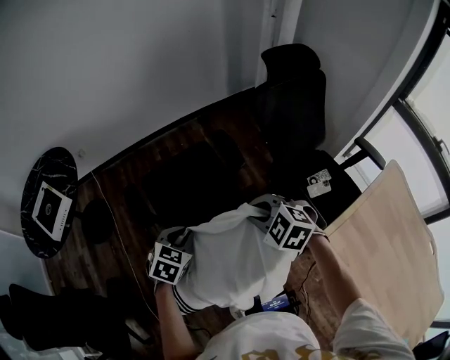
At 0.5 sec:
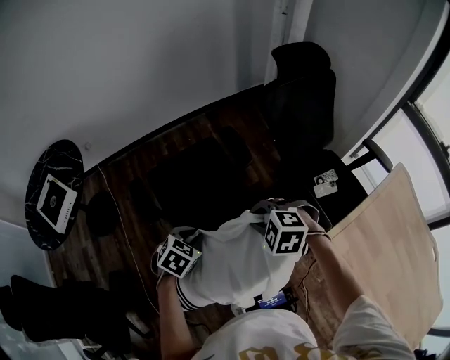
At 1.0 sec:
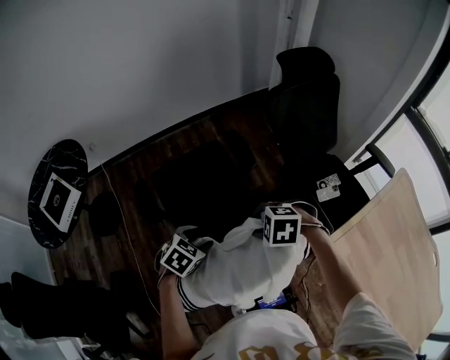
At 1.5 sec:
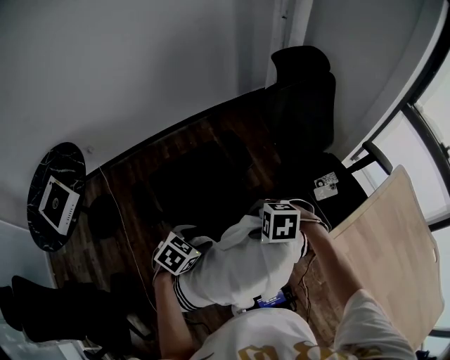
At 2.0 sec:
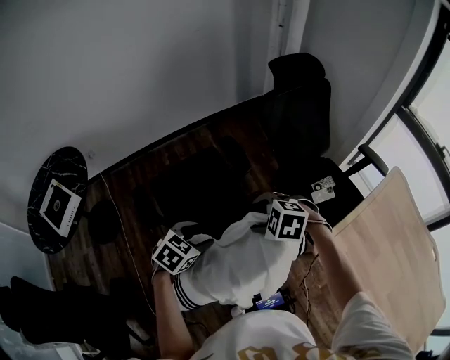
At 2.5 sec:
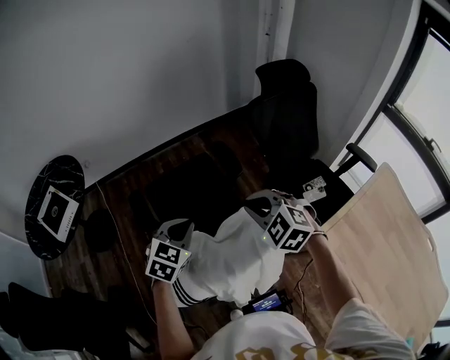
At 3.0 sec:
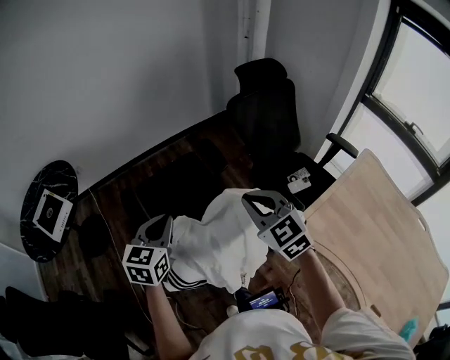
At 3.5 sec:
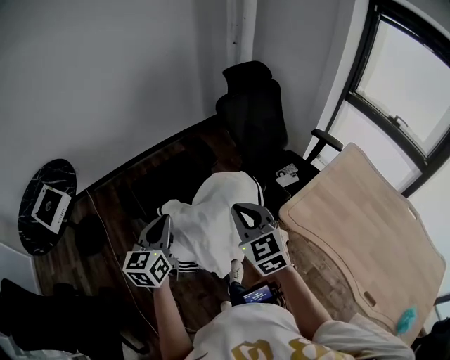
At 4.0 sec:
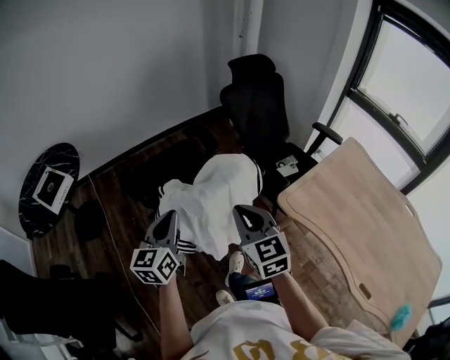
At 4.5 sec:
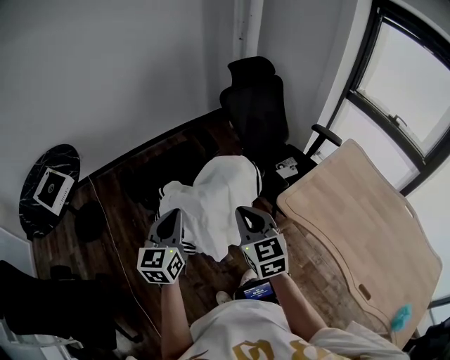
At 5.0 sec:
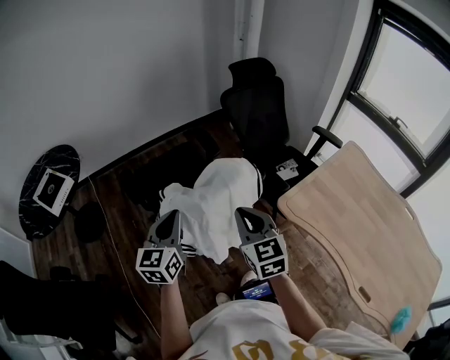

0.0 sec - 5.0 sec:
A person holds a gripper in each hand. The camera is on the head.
0.0 sec - 2.5 sec: The grippers both shift upward by some 10 cm. The left gripper opens, then closes once more. The right gripper opens, then closes once more.
2.5 sec - 5.0 sec: Both grippers move backward, about 20 cm. The right gripper turns by approximately 50 degrees, while the left gripper changes its angle by about 40 degrees.

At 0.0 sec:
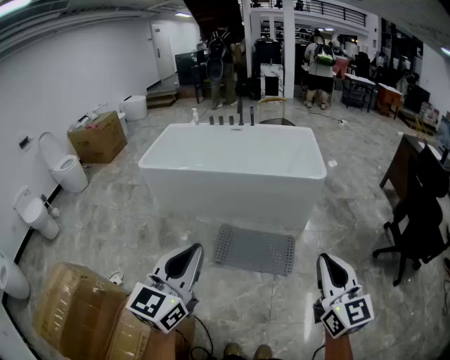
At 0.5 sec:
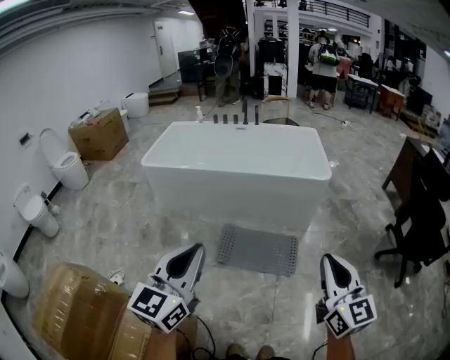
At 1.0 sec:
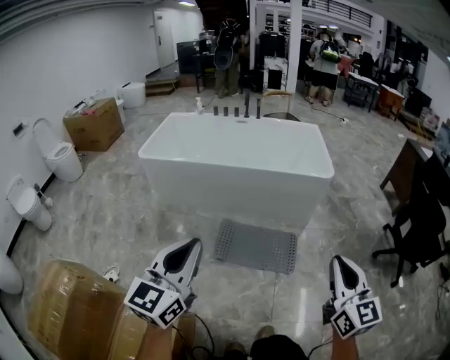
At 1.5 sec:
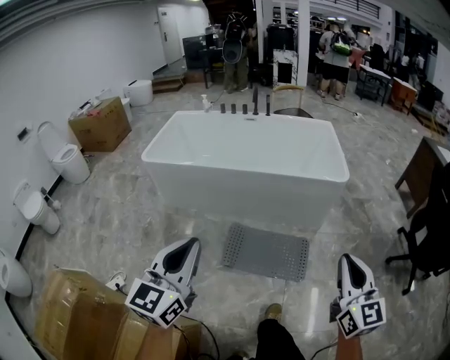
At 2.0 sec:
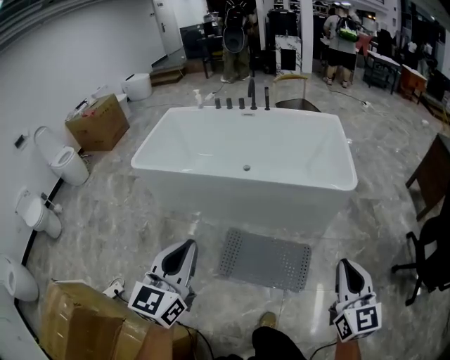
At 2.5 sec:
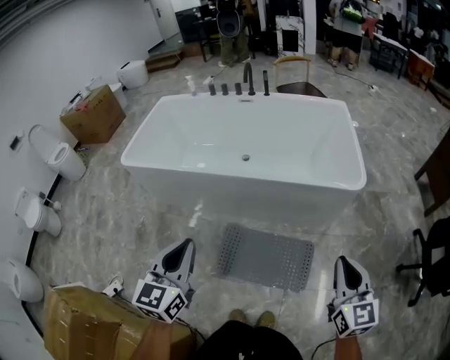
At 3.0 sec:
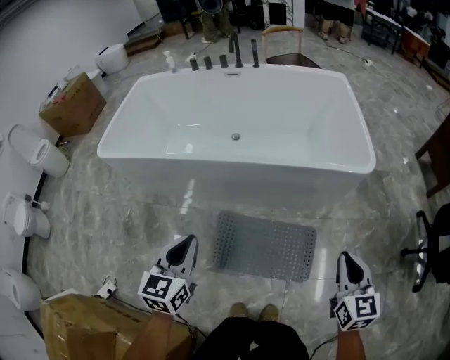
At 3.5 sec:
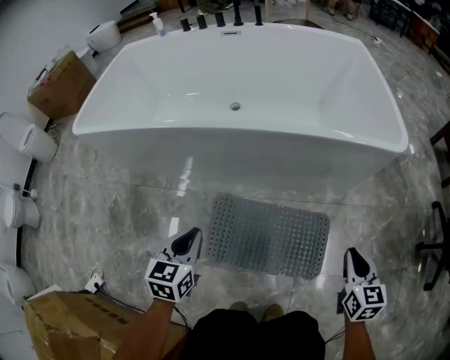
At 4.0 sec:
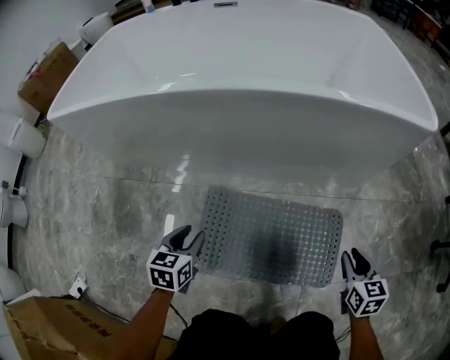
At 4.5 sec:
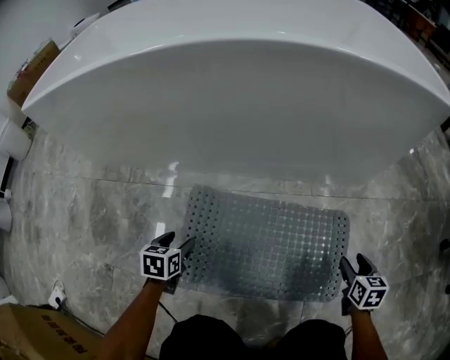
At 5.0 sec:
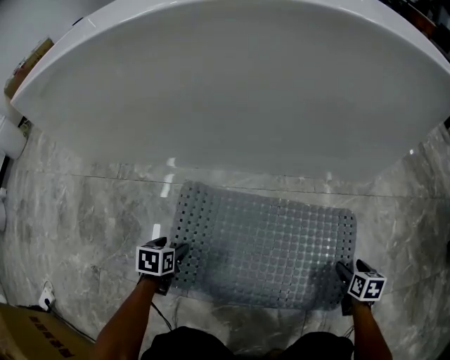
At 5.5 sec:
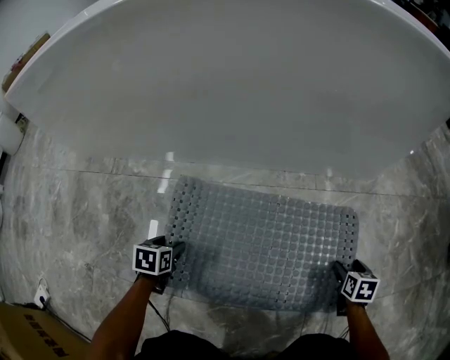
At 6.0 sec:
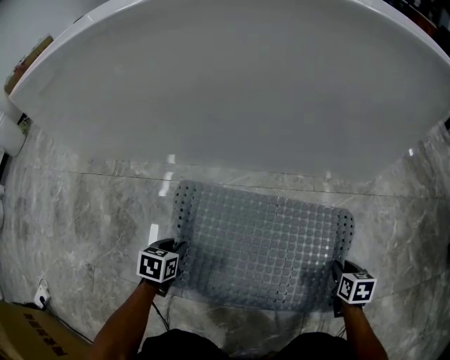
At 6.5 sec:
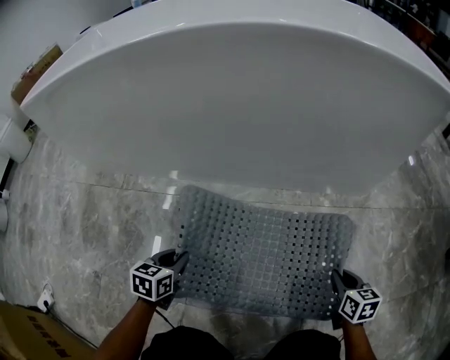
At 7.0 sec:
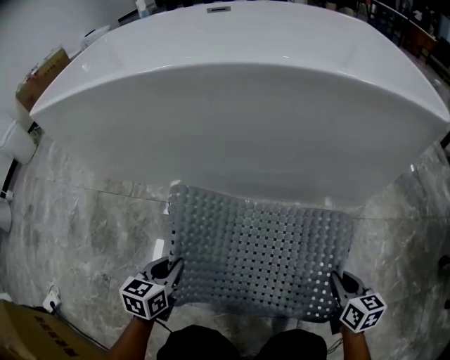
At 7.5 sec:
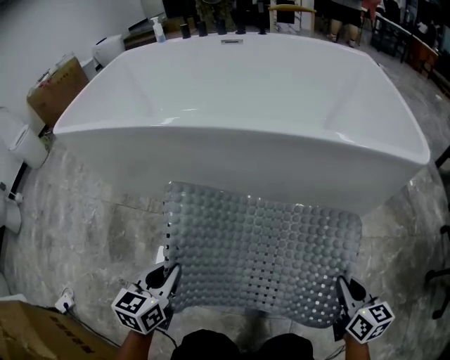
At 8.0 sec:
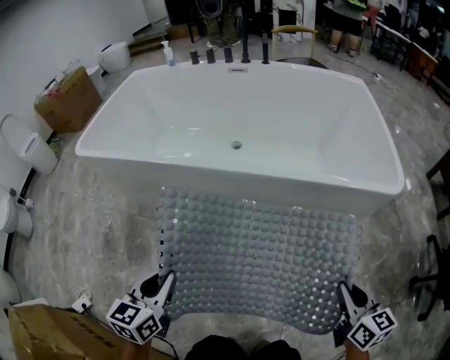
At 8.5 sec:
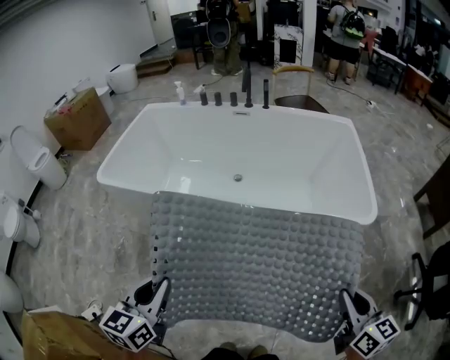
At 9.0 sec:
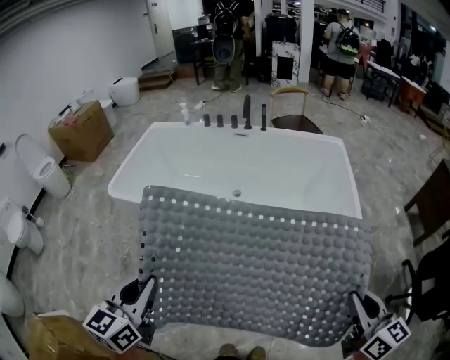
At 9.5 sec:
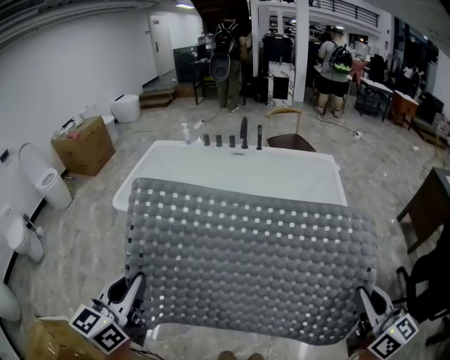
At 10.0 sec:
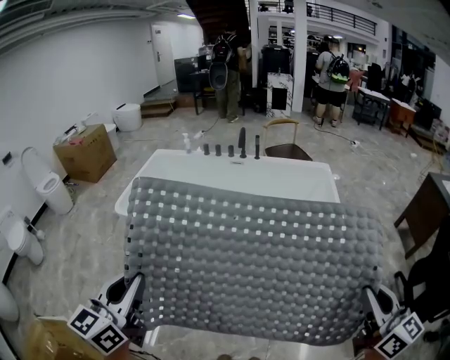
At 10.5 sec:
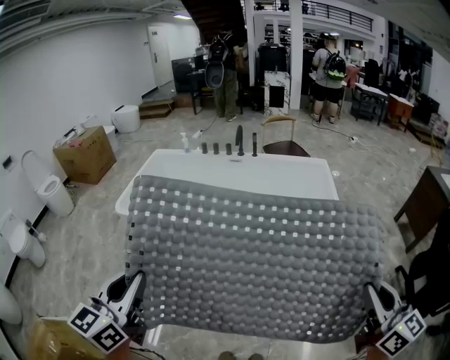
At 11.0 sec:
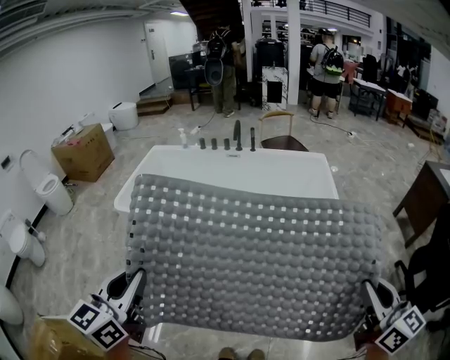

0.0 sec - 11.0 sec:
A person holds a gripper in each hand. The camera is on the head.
0.0 sec - 2.0 sec: Both grippers move forward, approximately 30 cm.
2.0 sec - 3.5 sec: The grippers both shift downward and forward by some 50 cm. The right gripper swivels approximately 30 degrees; the left gripper turns by about 30 degrees.
3.5 sec - 5.5 sec: The grippers both shift downward by approximately 50 cm. The right gripper rotates roughly 30 degrees, and opens; the left gripper angles its fingers downward, by some 30 degrees, and opens.
5.5 sec - 7.5 sec: The two grippers go about 40 cm upward. The left gripper tips its fingers upward by some 40 degrees, and closes. The right gripper tilts its fingers some 30 degrees upward, and closes up.
7.5 sec - 9.0 sec: The two grippers go some 60 cm upward.
9.0 sec - 11.0 sec: Both grippers move upward and backward, about 15 cm.

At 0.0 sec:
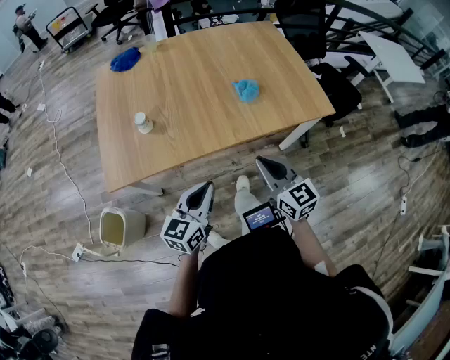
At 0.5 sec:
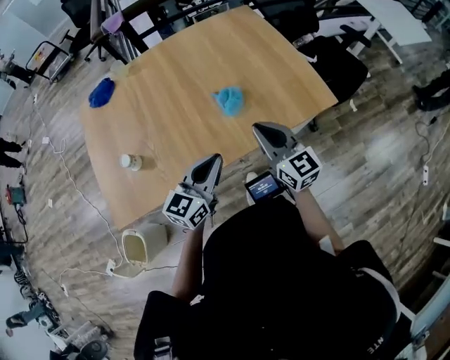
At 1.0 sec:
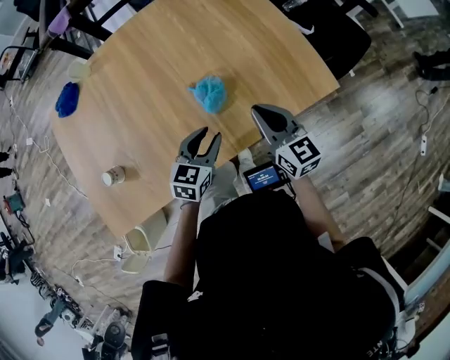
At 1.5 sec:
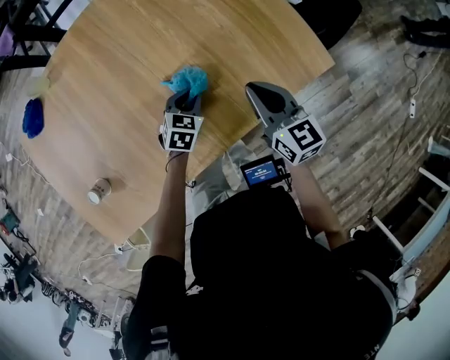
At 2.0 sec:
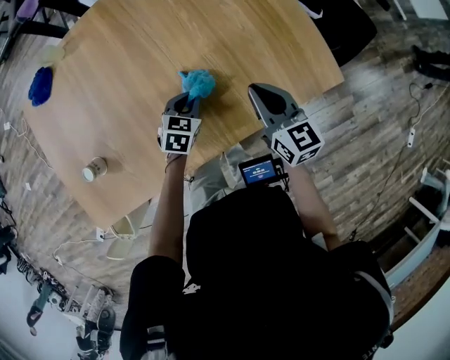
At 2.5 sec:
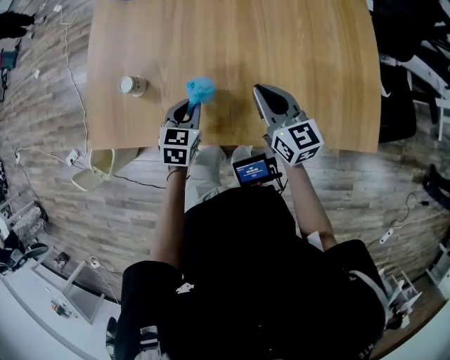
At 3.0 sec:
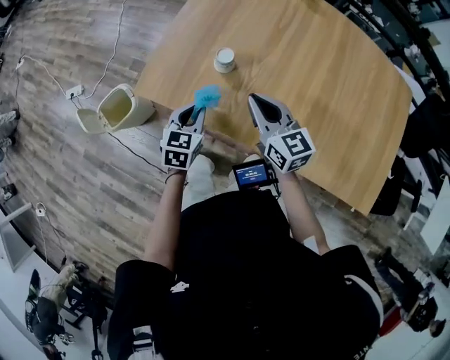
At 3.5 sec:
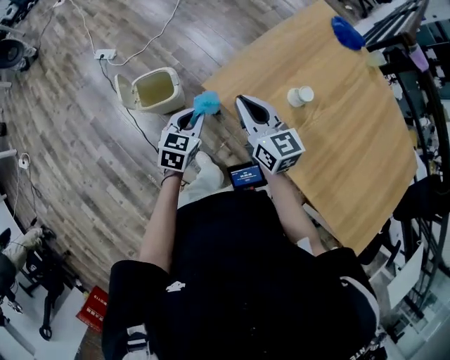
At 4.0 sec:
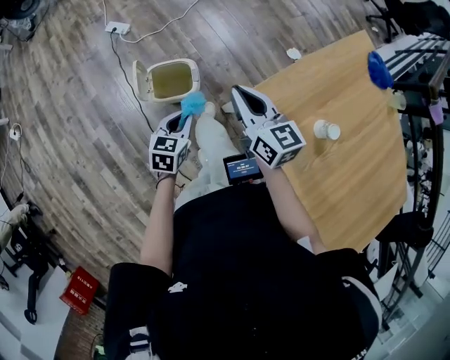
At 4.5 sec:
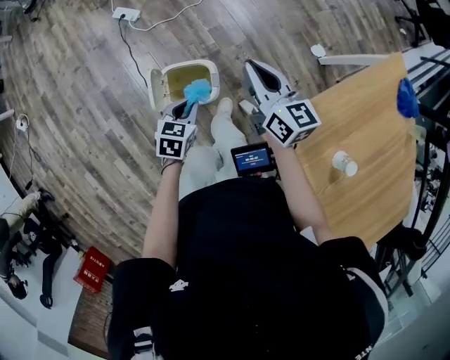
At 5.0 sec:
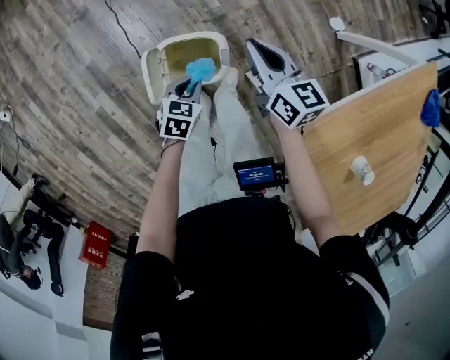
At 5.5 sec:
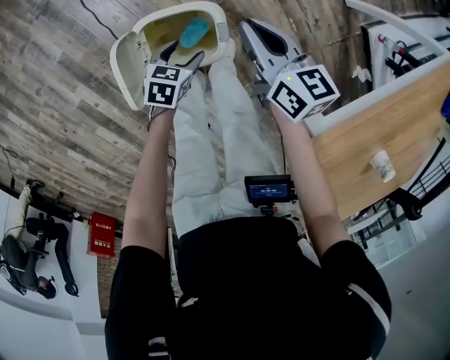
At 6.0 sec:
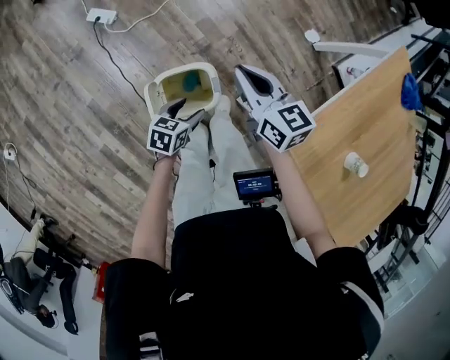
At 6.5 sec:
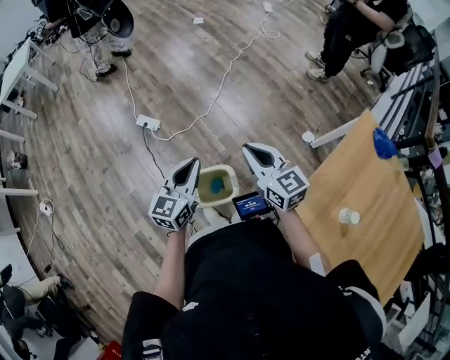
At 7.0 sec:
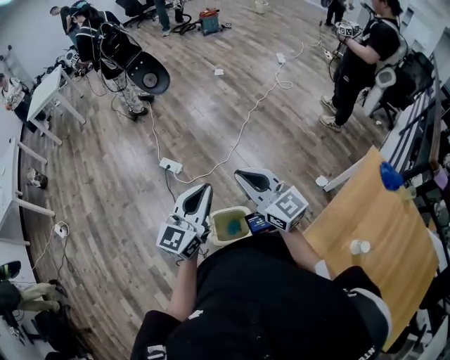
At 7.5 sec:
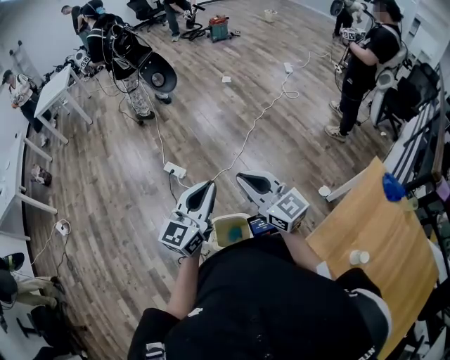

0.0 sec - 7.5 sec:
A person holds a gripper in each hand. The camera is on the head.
0.0 sec - 2.0 sec: The right gripper shifts about 35 cm forward; the left gripper goes about 50 cm forward and downward, and points its fingers some 40 degrees further downward.
2.0 sec - 4.0 sec: The pair of grippers is taken about 90 cm. The right gripper changes its angle by some 80 degrees. The left gripper swivels some 90 degrees.
4.0 sec - 5.5 sec: Both grippers move downward and forward, some 35 cm. The right gripper swivels about 20 degrees. The left gripper swivels about 30 degrees, and opens.
5.5 sec - 7.5 sec: The two grippers go some 60 cm upward. The left gripper tilts its fingers roughly 60 degrees upward, and closes its fingers, while the right gripper points its fingers some 30 degrees further upward.

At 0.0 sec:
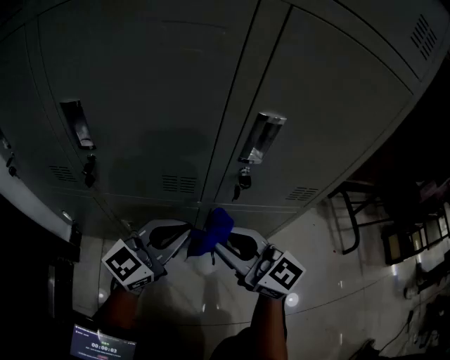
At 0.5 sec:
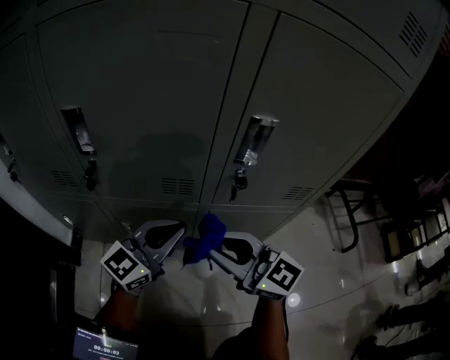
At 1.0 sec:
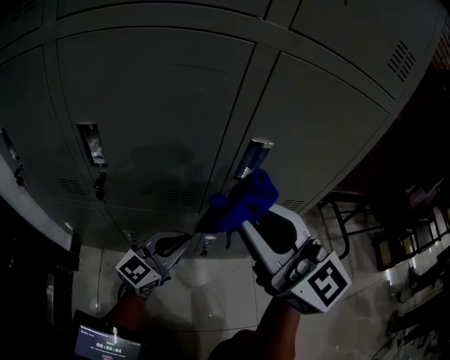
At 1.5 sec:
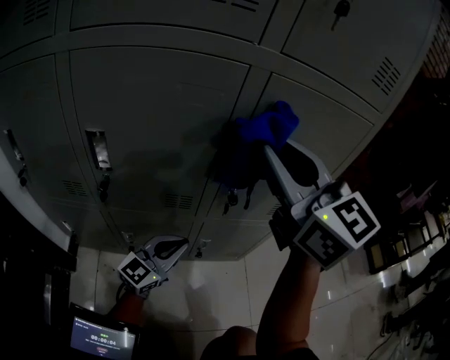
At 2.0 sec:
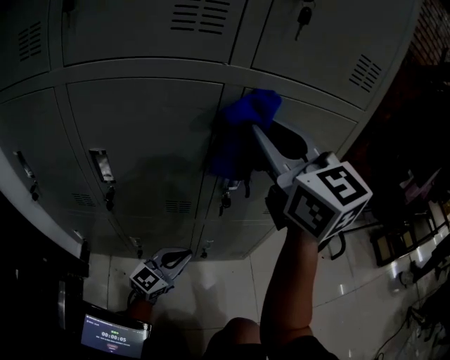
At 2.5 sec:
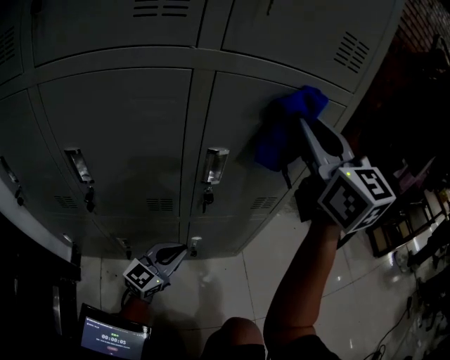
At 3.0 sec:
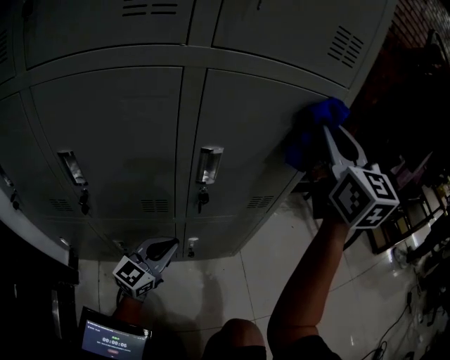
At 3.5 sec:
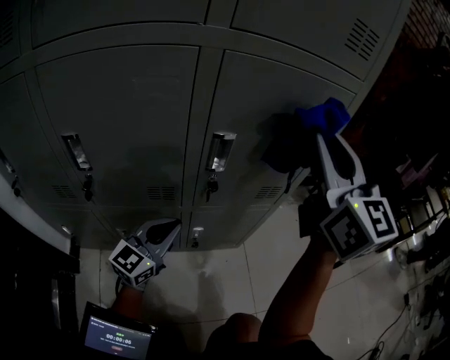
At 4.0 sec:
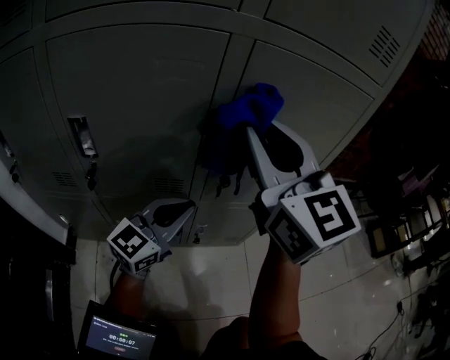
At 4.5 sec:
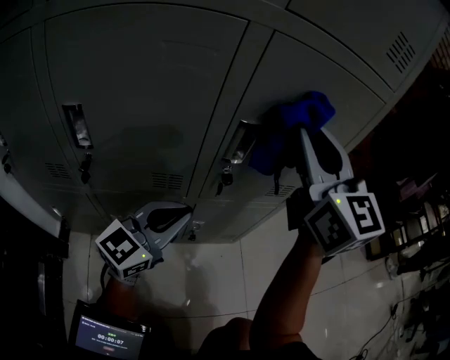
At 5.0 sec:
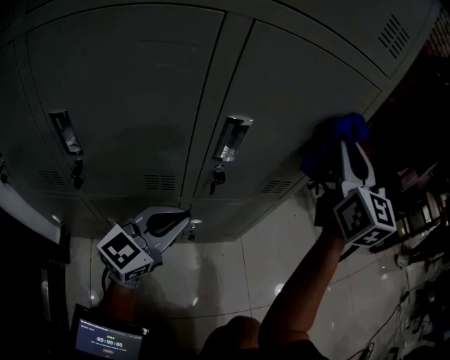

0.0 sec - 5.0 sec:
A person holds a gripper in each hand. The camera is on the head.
0.0 sec - 2.5 sec: The left gripper changes place by some 5 cm, while the right gripper travels upward and to the right by about 35 cm, and changes its angle by some 40 degrees.
2.5 sec - 5.0 sec: The right gripper moves left and right over some 20 cm, changing direction 2 times. The left gripper travels upward by about 10 cm.
